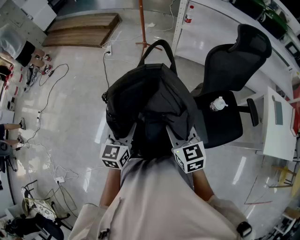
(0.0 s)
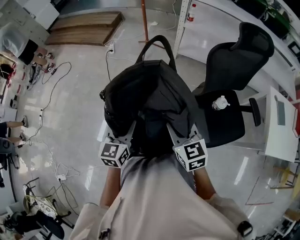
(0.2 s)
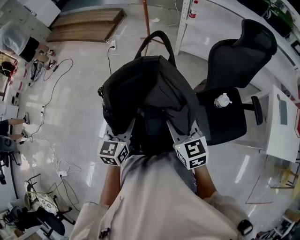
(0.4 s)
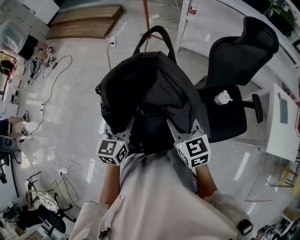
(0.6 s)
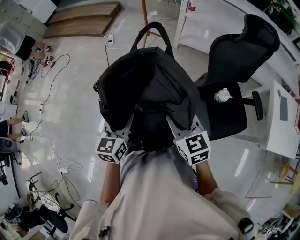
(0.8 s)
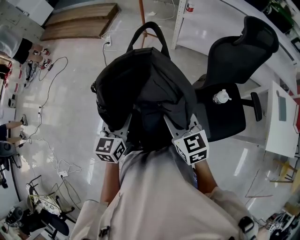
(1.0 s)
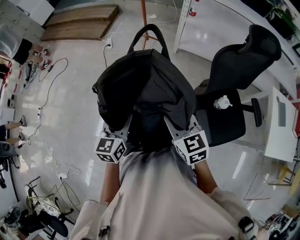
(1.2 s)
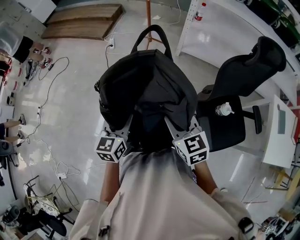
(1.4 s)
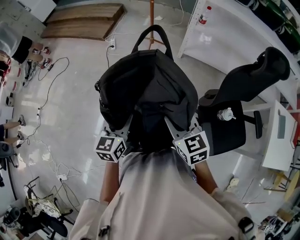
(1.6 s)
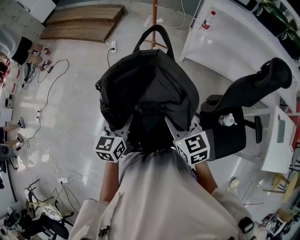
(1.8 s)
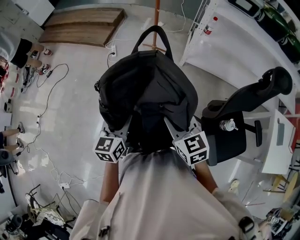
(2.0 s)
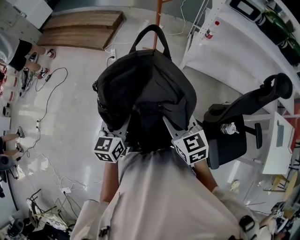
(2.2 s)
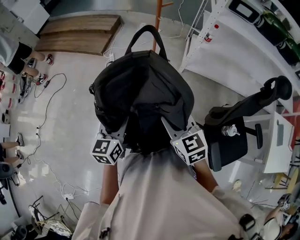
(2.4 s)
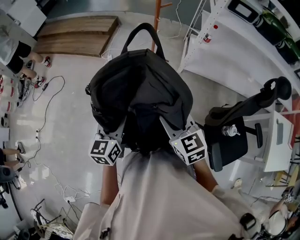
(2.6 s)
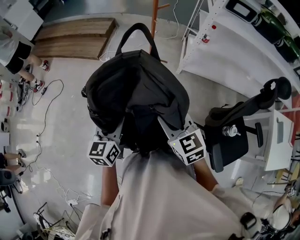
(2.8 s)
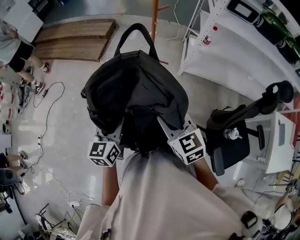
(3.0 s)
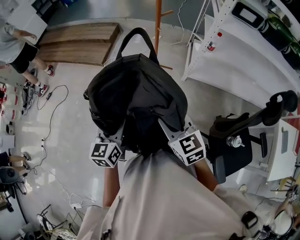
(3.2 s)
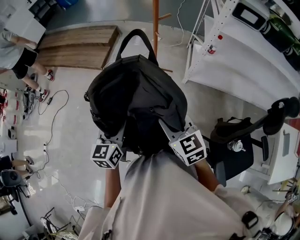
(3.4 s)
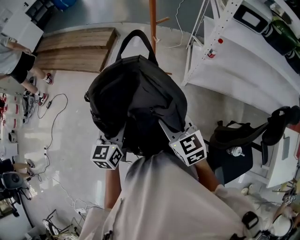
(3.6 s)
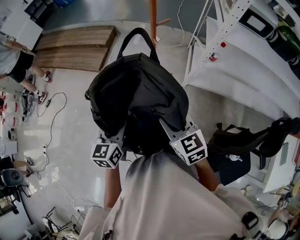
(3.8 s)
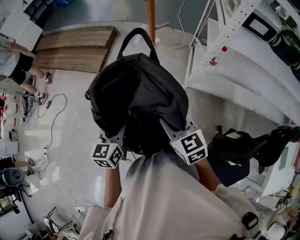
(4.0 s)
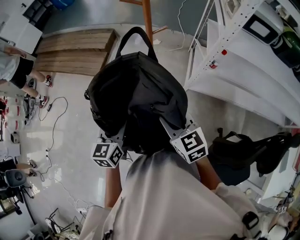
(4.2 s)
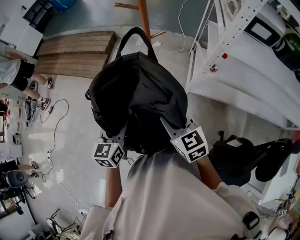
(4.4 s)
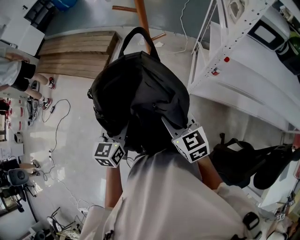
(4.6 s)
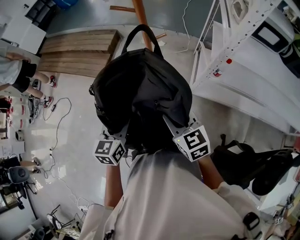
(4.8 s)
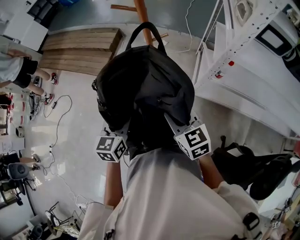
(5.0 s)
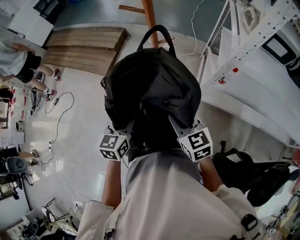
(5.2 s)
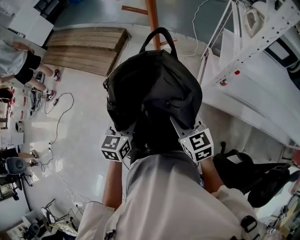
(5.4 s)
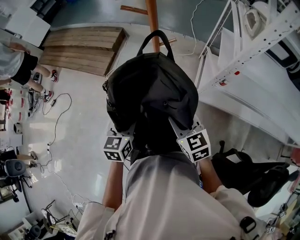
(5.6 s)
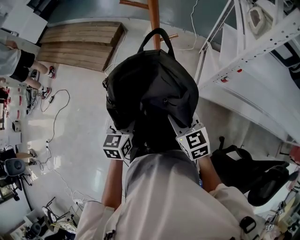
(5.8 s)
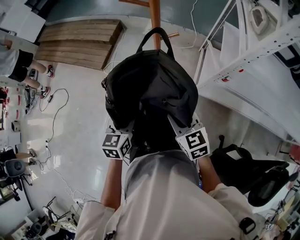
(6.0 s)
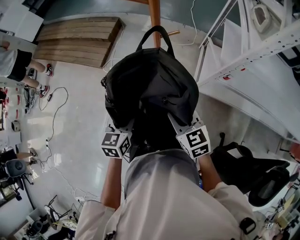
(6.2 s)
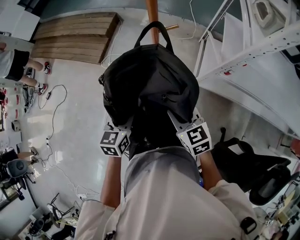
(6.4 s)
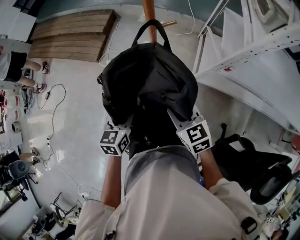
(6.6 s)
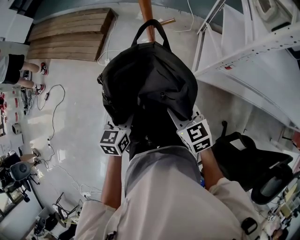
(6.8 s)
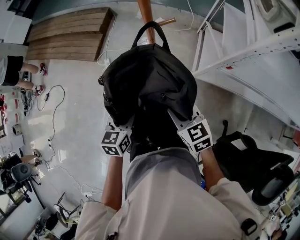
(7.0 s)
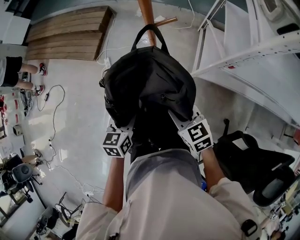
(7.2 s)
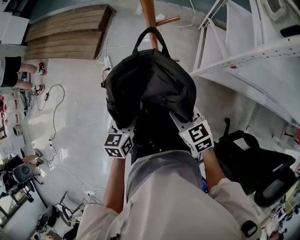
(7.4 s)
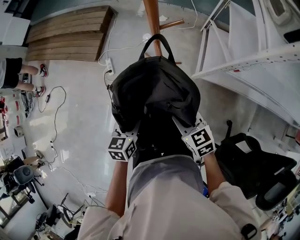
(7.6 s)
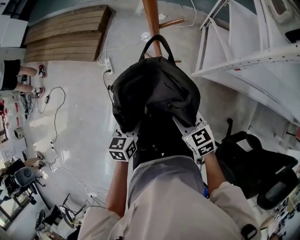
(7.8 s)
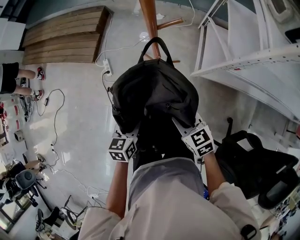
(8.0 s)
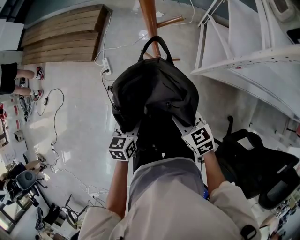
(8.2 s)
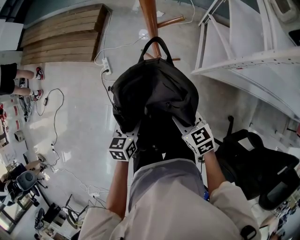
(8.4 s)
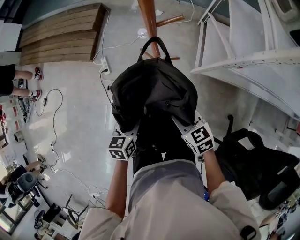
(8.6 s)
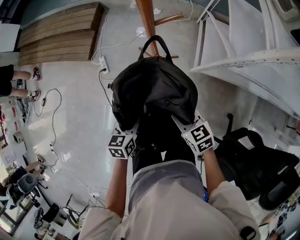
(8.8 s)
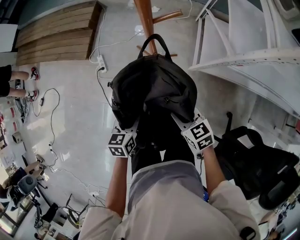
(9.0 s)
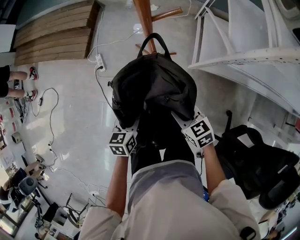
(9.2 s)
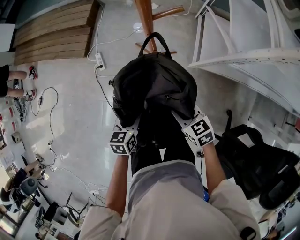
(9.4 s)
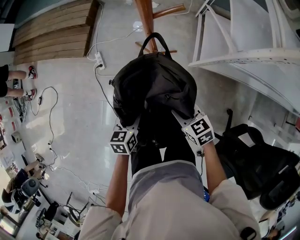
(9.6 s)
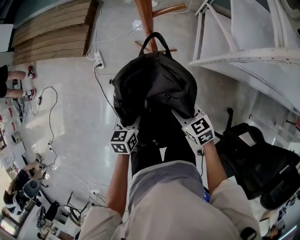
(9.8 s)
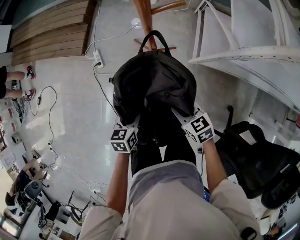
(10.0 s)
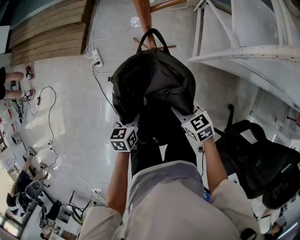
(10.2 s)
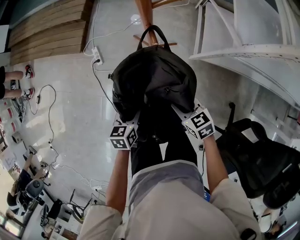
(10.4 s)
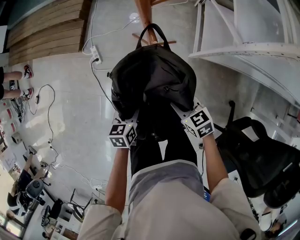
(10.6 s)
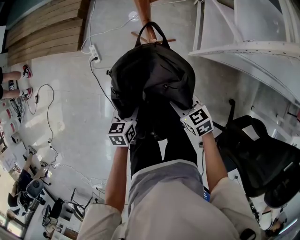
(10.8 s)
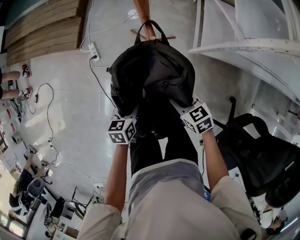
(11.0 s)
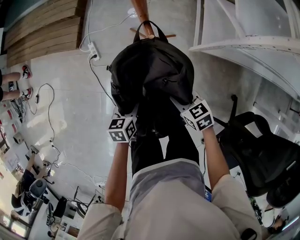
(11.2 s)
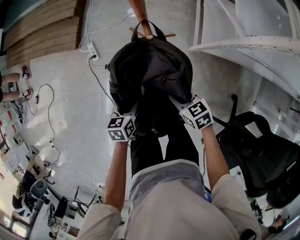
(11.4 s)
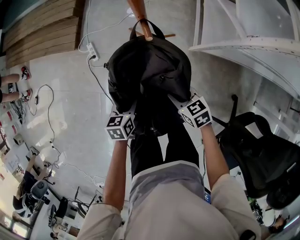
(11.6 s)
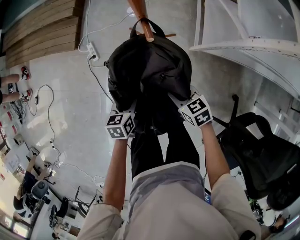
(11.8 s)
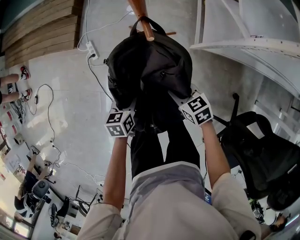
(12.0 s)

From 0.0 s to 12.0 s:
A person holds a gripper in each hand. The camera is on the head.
From 0.0 s to 1.6 s: Both grippers travel together forward, roughly 15 cm.
From 1.6 s to 3.0 s: The grippers both shift forward and to the left by about 25 cm.
From 3.0 s to 4.4 s: The grippers both shift forward and to the right by some 30 cm.
From 4.4 s to 6.0 s: The two grippers go roughly 10 cm forward and downward.
From 6.0 s to 7.6 s: Both grippers travel together downward, roughly 10 cm.
From 7.6 s to 9.0 s: The two grippers go some 5 cm downward.
From 9.0 s to 10.4 s: The grippers both shift downward by about 5 cm.
From 10.4 s to 12.0 s: The grippers both shift downward by roughly 5 cm.

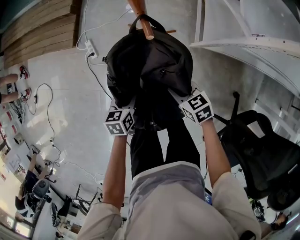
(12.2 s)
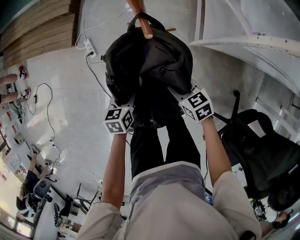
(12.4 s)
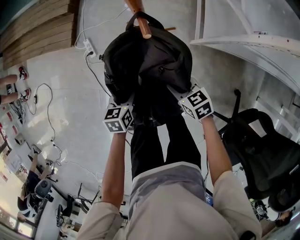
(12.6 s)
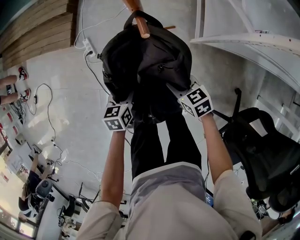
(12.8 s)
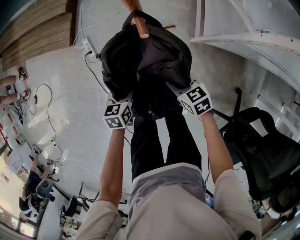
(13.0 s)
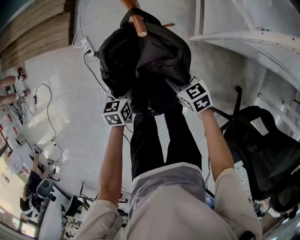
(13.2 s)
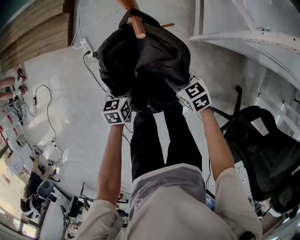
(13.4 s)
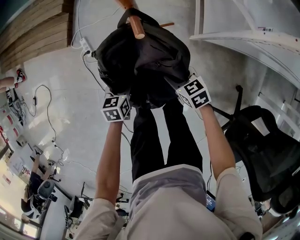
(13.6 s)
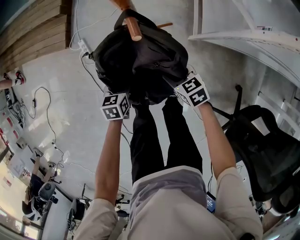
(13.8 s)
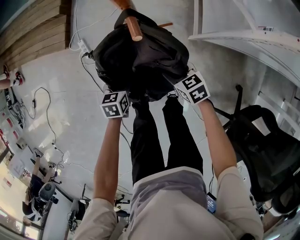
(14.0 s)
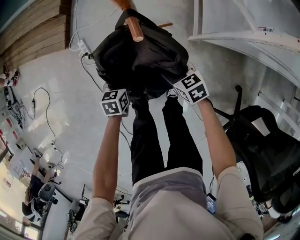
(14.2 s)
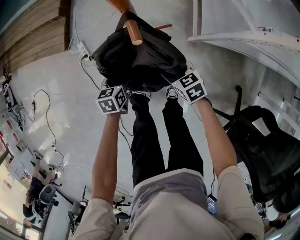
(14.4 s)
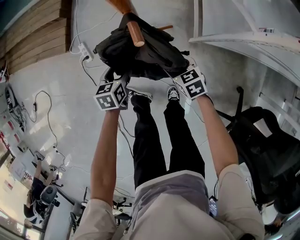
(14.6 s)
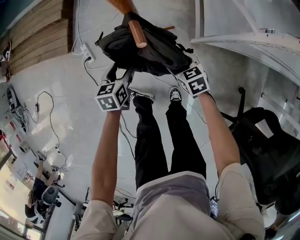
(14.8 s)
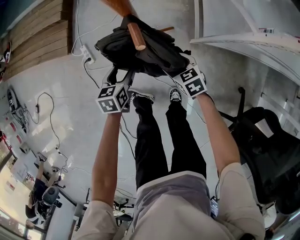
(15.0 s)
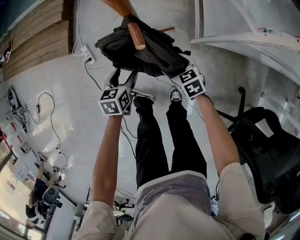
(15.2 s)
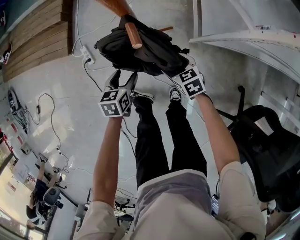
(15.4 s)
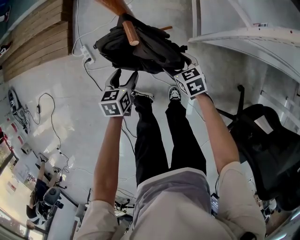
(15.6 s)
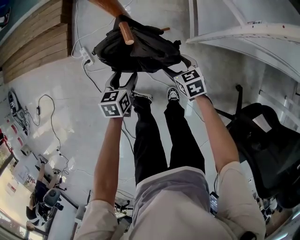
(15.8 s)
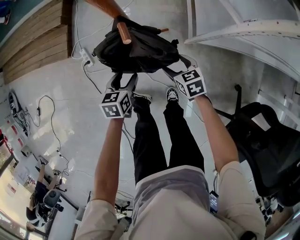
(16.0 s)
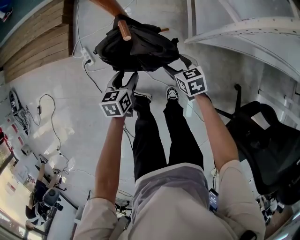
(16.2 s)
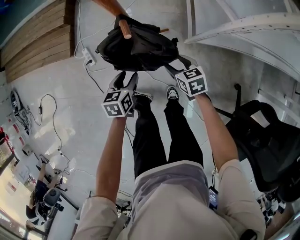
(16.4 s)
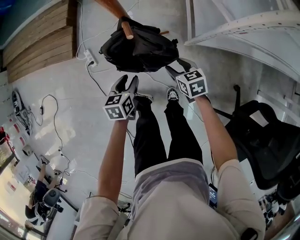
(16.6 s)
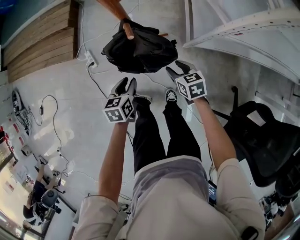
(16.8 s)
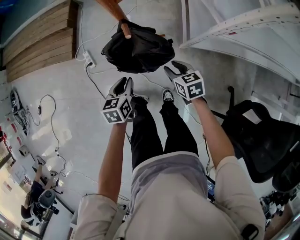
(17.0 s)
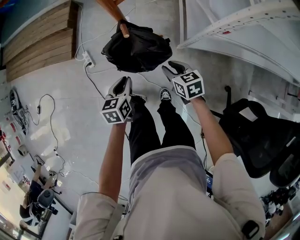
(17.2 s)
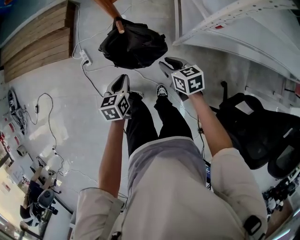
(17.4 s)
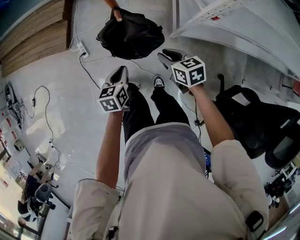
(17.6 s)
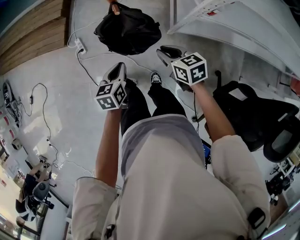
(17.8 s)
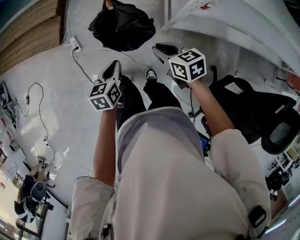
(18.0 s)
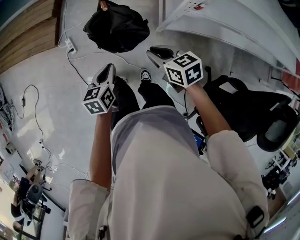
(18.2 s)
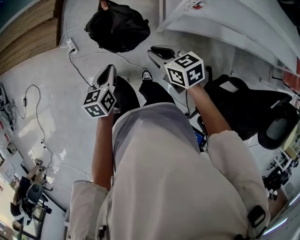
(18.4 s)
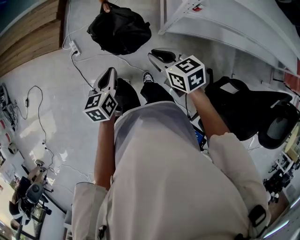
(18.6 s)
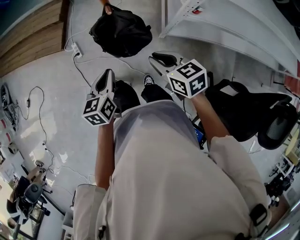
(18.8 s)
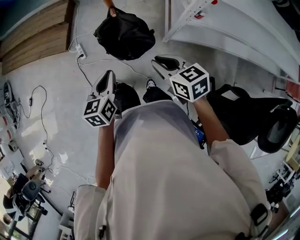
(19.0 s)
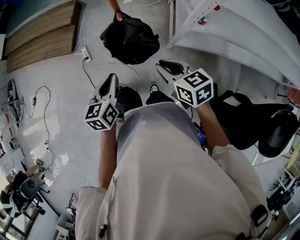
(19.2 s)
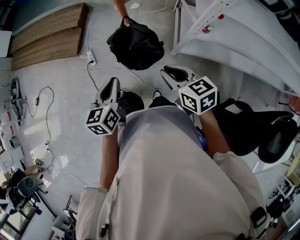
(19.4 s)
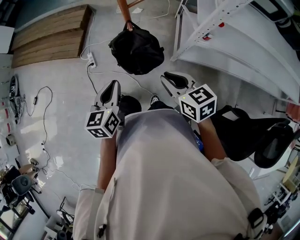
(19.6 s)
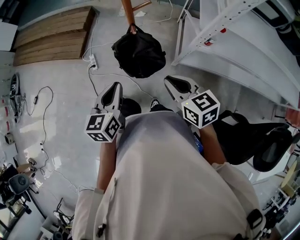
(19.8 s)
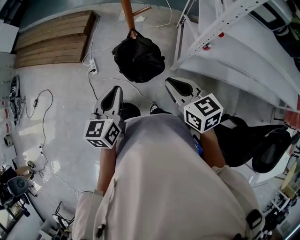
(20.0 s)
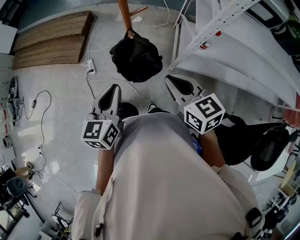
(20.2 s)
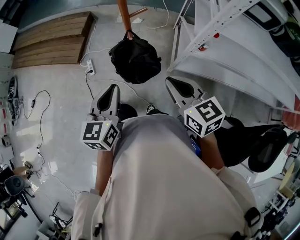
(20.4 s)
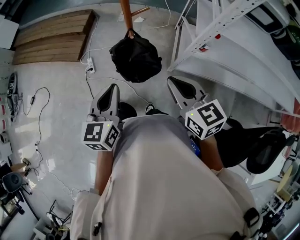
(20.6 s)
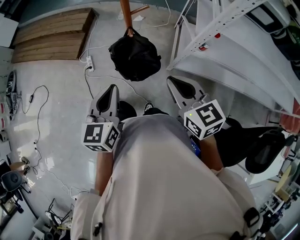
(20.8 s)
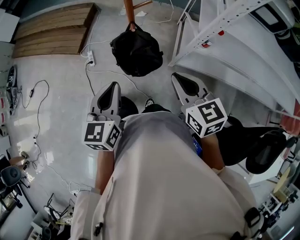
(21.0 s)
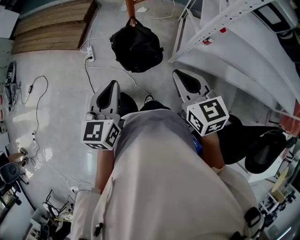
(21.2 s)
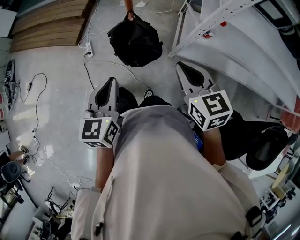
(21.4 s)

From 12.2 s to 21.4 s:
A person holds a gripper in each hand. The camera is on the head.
From 12.2 s to 13.8 s: The left gripper shifts some 10 cm downward and forward. Meanwhile the right gripper is displaced downward by roughly 5 cm.
From 13.8 s to 15.2 s: The right gripper shifts by approximately 5 cm, and opens. The left gripper travels forward by roughly 5 cm.
From 15.2 s to 16.8 s: The right gripper is displaced upward by about 10 cm, and closes its fingers; the left gripper moves upward and backward, some 10 cm, and closes up.
From 16.8 s to 18.4 s: The grippers both shift upward and backward by approximately 20 cm. The right gripper closes; the left gripper closes.
From 18.4 s to 19.8 s: Both grippers travel together upward, about 15 cm.
From 19.8 s to 21.4 s: The right gripper heads upward, covering approximately 5 cm, while the left gripper moves some 5 cm.

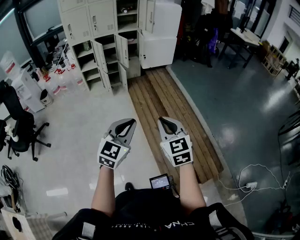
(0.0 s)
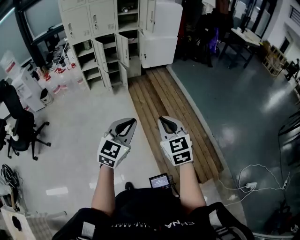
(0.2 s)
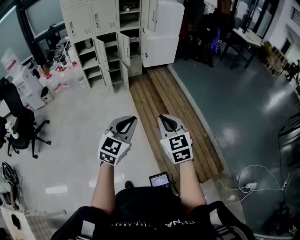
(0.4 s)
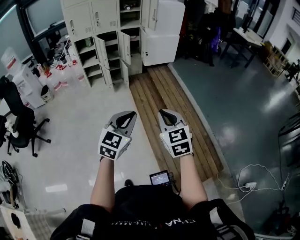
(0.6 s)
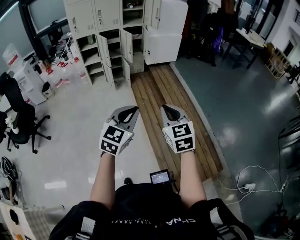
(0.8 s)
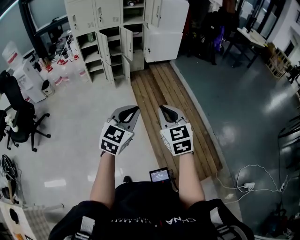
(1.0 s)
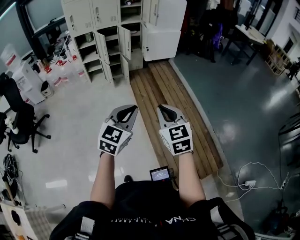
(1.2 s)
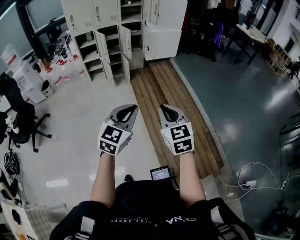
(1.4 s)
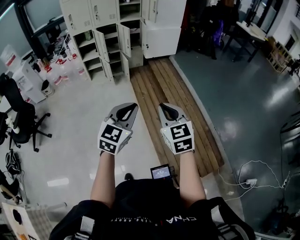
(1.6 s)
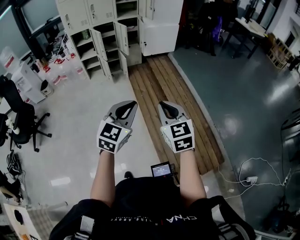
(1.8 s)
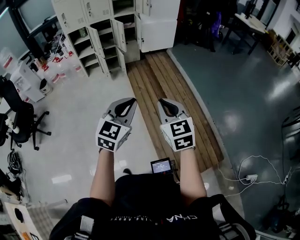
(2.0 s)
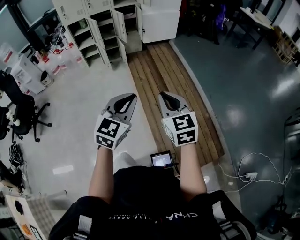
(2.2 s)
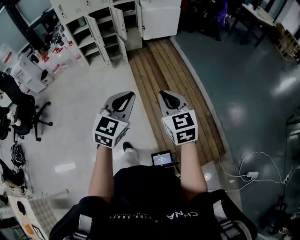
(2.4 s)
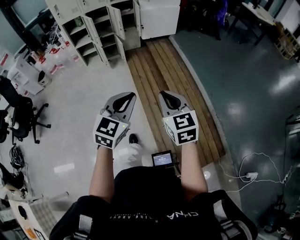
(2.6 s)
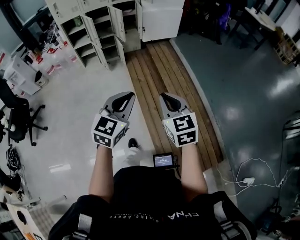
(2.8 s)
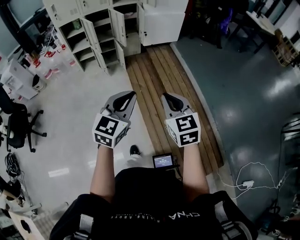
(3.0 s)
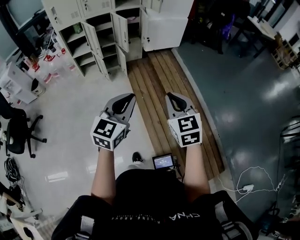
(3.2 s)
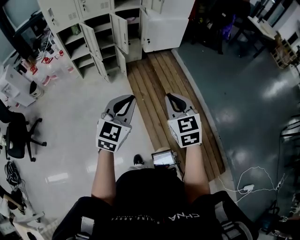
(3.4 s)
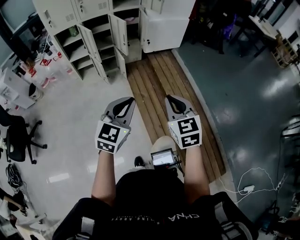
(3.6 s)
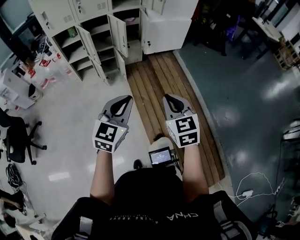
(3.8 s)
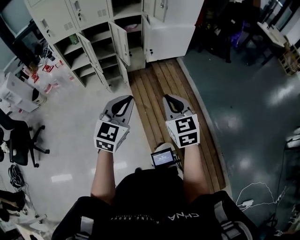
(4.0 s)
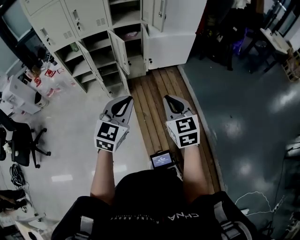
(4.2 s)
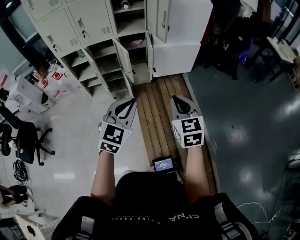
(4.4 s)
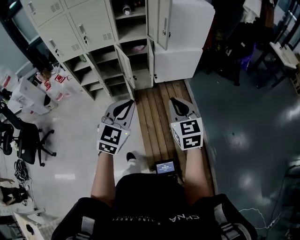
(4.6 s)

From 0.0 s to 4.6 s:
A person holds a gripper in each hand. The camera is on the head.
From 0.0 s to 1.6 s: The grippers stay close to where they were, moving slightly.
From 1.6 s to 3.0 s: Both grippers move forward, roughly 20 cm.
From 3.0 s to 4.6 s: The pair of grippers is taken forward, some 50 cm.
